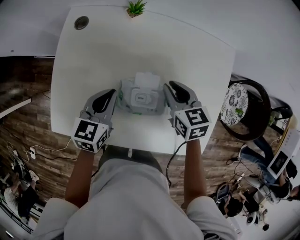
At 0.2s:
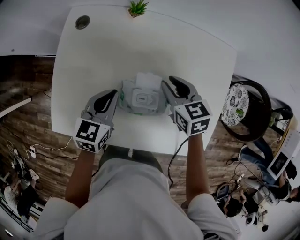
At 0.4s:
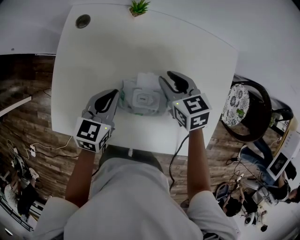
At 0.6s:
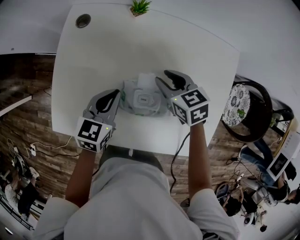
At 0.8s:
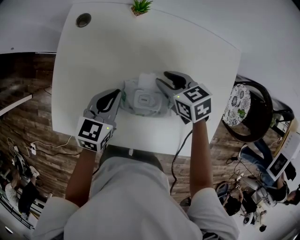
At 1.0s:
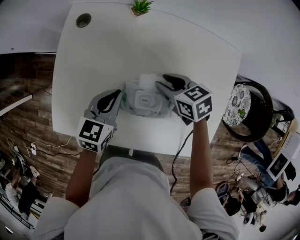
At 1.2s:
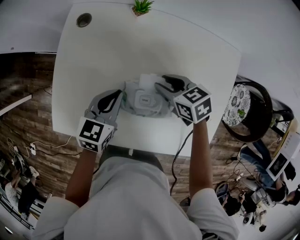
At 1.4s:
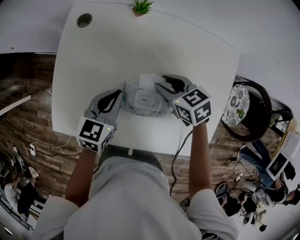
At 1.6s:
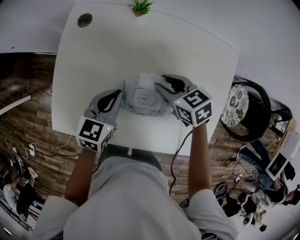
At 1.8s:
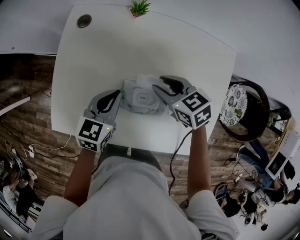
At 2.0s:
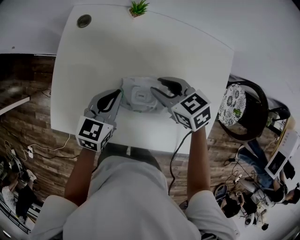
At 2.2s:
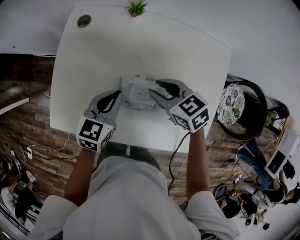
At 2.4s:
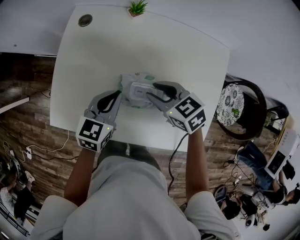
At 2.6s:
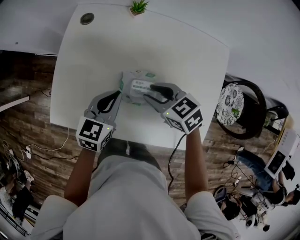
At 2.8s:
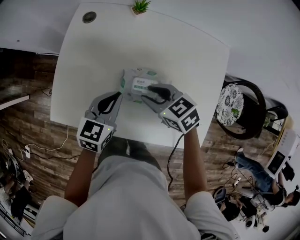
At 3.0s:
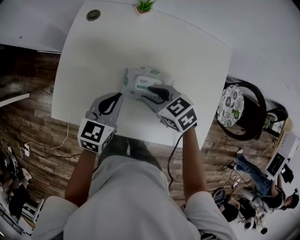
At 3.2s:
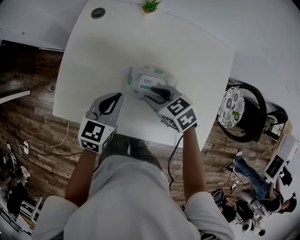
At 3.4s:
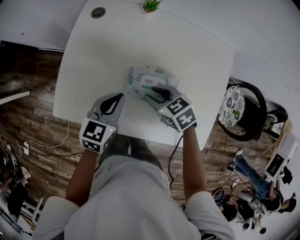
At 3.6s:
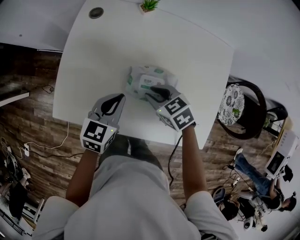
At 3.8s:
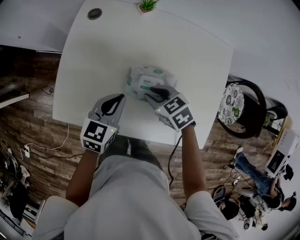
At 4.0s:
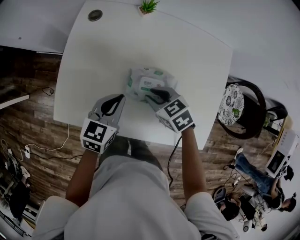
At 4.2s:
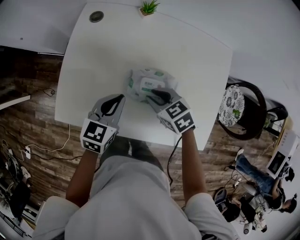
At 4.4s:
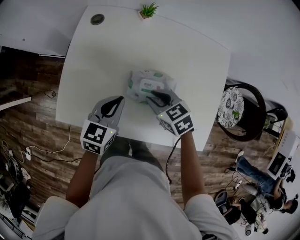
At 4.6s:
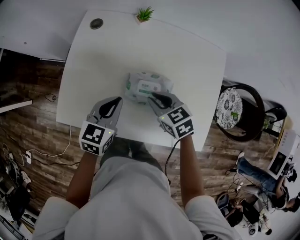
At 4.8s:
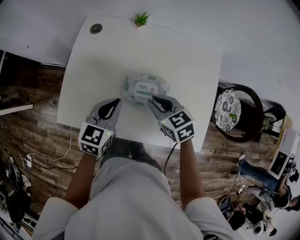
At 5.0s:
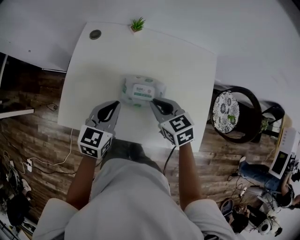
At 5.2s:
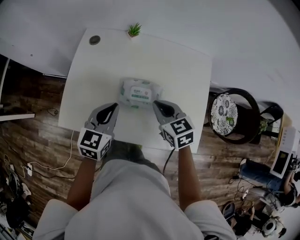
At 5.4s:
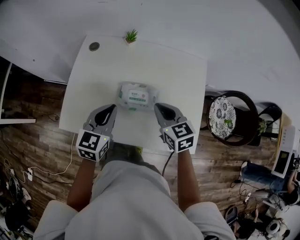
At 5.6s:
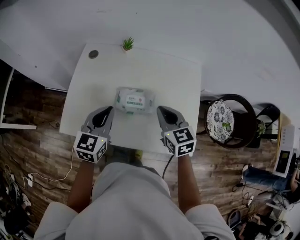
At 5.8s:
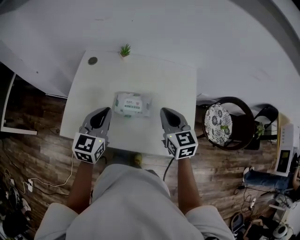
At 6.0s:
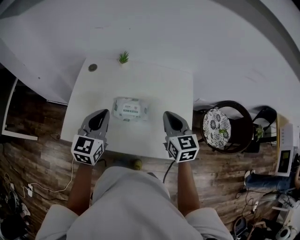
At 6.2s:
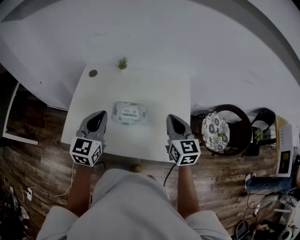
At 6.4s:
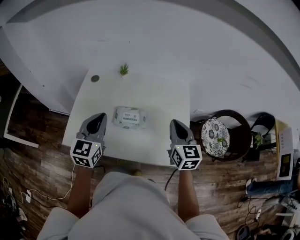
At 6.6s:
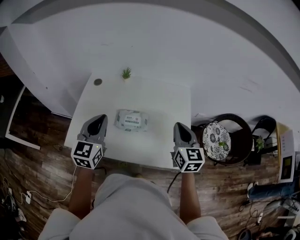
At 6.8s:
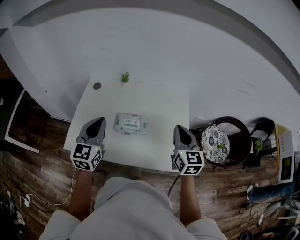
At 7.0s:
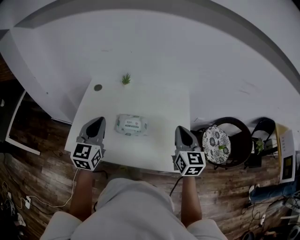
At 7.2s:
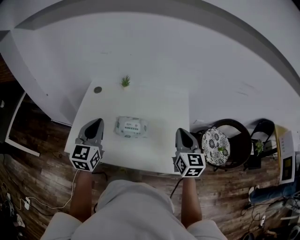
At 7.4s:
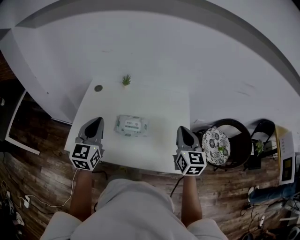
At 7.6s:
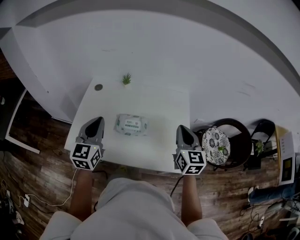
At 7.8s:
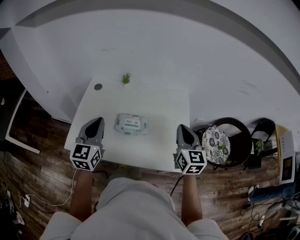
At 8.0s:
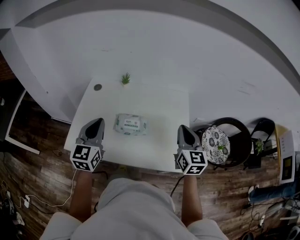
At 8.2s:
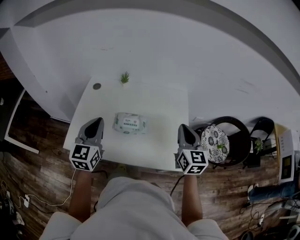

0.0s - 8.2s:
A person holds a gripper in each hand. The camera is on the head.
0.0s - 1.6s: The right gripper ends up approximately 5 cm from where it was, and turns by roughly 20 degrees.
1.6s - 3.2s: The left gripper heads backward, covering about 5 cm. The right gripper goes about 10 cm backward and to the left.
3.2s - 5.0s: The two grippers go roughly 5 cm upward. The right gripper swivels roughly 20 degrees, and closes its fingers.
5.0s - 6.6s: The left gripper moves upward, about 15 cm, and turns by about 20 degrees. The right gripper heads to the right, upward and backward, covering roughly 25 cm, and turns by some 40 degrees.
6.6s - 8.2s: The grippers make only small movements.

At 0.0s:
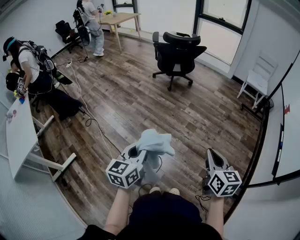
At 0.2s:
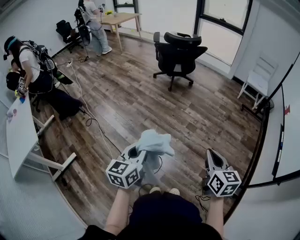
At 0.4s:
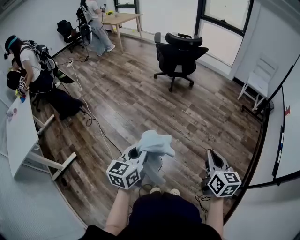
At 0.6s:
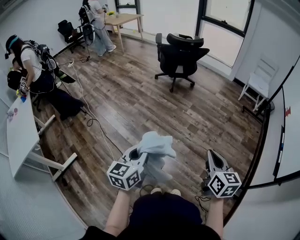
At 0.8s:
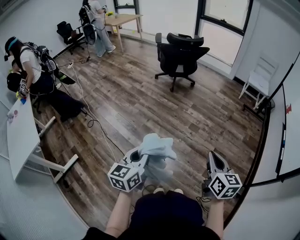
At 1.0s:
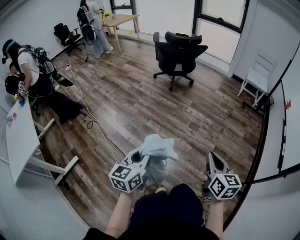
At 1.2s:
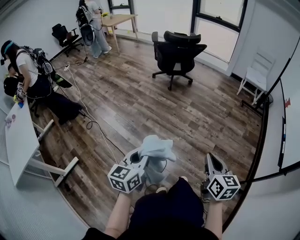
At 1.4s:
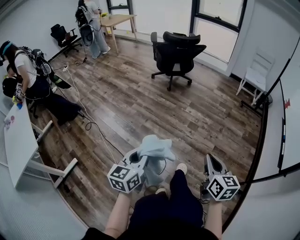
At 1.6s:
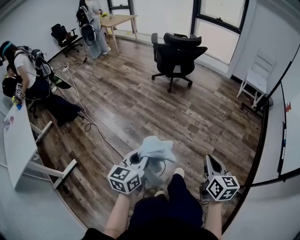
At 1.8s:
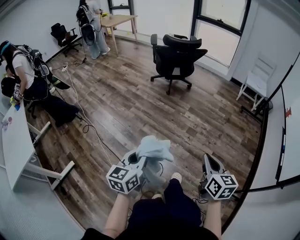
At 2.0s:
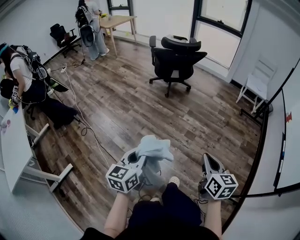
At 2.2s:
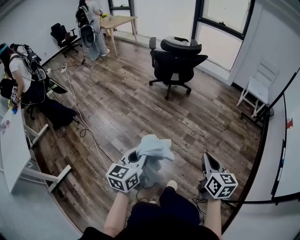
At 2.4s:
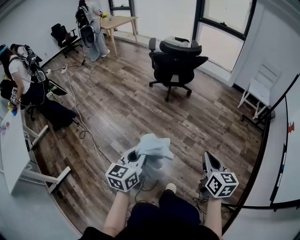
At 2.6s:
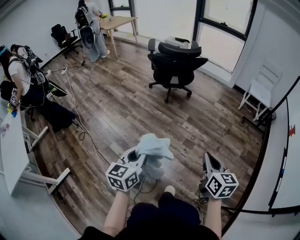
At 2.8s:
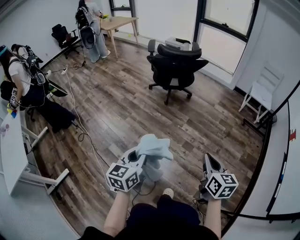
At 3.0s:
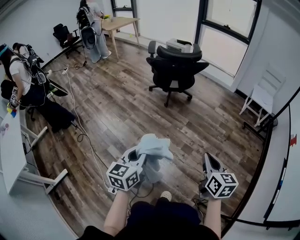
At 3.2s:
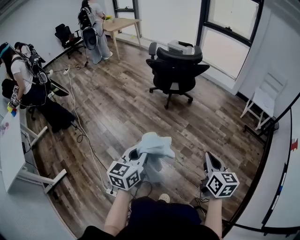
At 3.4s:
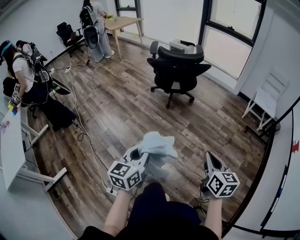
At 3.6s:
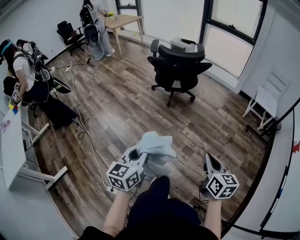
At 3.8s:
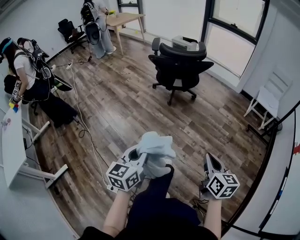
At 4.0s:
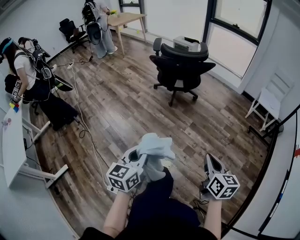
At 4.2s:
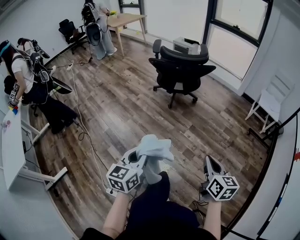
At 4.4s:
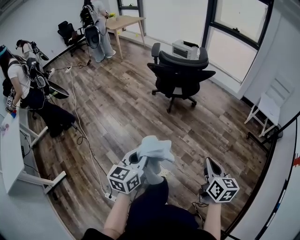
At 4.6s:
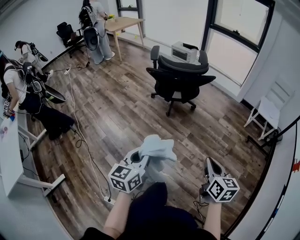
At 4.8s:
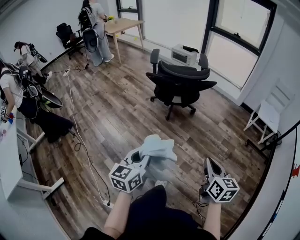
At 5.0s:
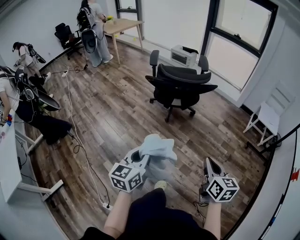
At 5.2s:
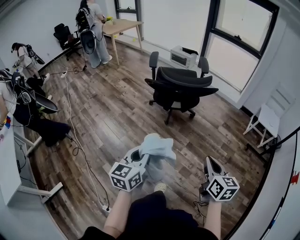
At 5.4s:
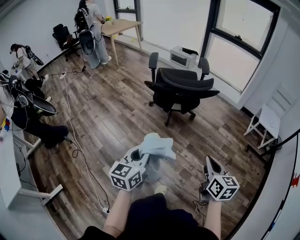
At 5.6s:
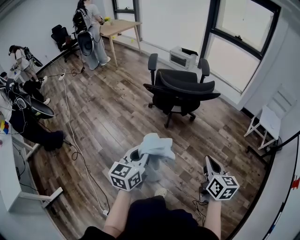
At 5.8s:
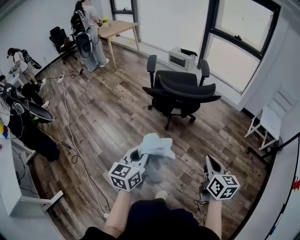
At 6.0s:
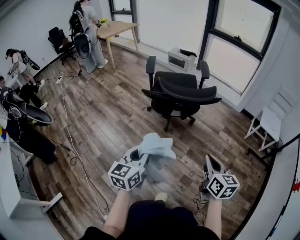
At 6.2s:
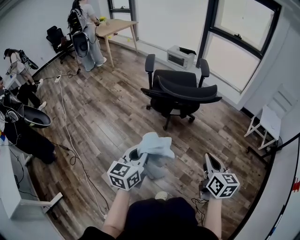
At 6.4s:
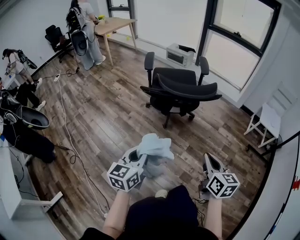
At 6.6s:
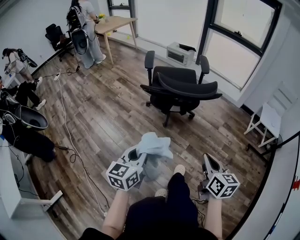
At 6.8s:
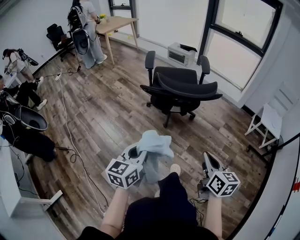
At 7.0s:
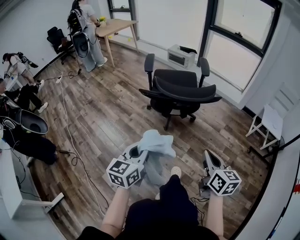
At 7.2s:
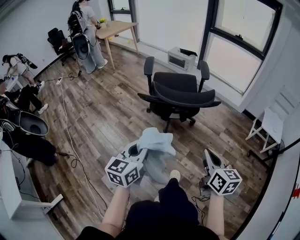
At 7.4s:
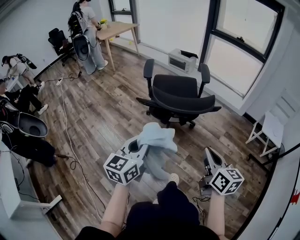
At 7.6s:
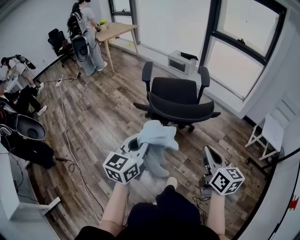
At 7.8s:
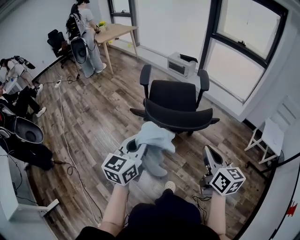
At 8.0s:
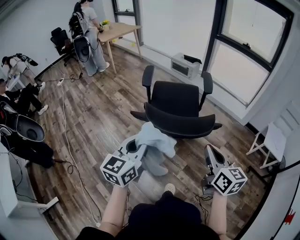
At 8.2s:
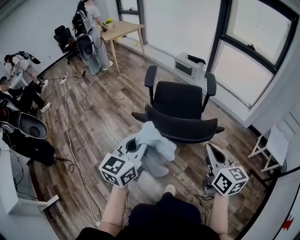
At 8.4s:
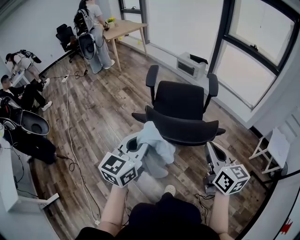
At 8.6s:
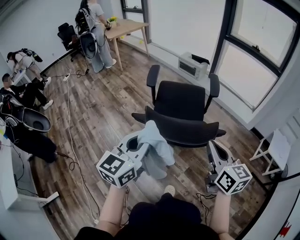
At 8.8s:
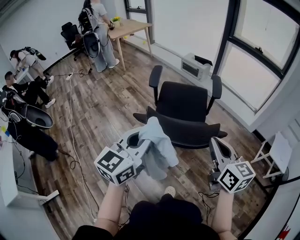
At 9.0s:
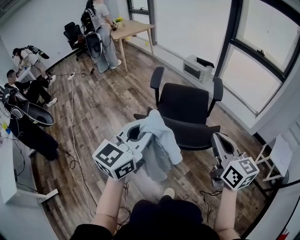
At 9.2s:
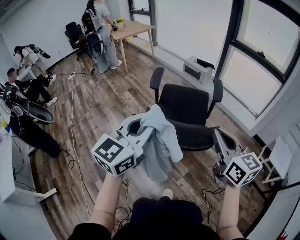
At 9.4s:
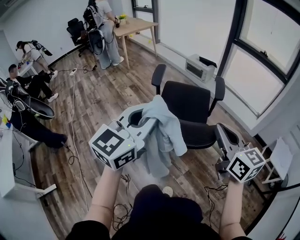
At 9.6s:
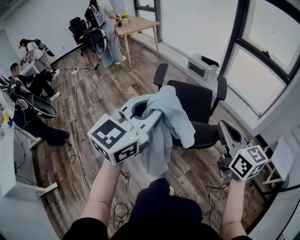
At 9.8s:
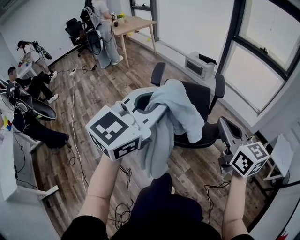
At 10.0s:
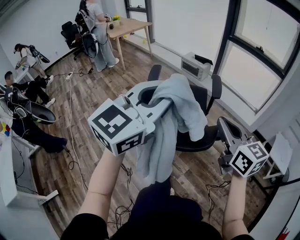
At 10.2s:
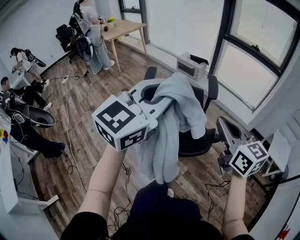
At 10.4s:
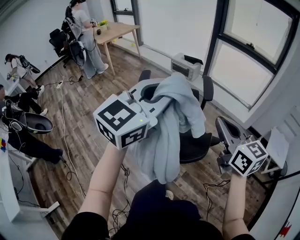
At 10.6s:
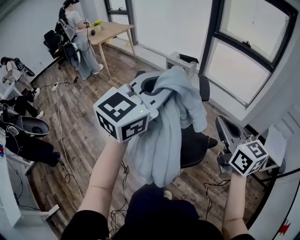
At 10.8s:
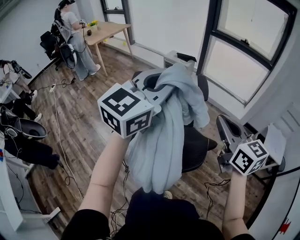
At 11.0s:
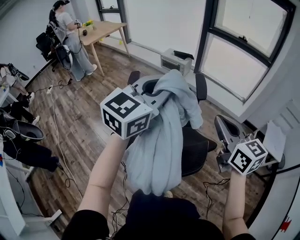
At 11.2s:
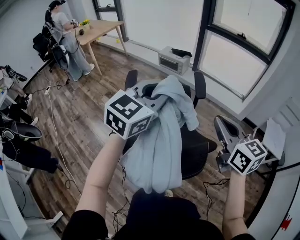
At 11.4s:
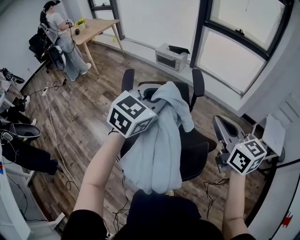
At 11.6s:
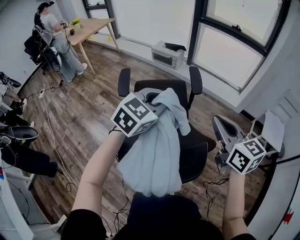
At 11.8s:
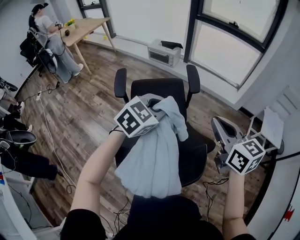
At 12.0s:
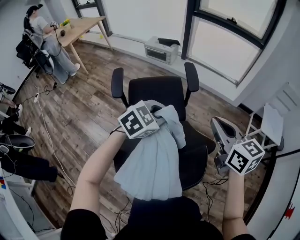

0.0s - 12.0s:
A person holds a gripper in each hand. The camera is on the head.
0.0s - 1.6s: The right gripper ends up roughly 5 cm from where it was.
1.6s - 3.0s: Both grippers travel together forward, about 25 cm.
3.0s - 4.4s: Both grippers move forward, some 10 cm.
4.4s - 6.0s: The grippers both shift forward by about 25 cm.
6.0s - 7.6s: The left gripper travels forward and upward by roughly 15 cm. The right gripper is displaced forward by some 15 cm.
7.6s - 9.0s: The two grippers go approximately 15 cm forward and upward.
9.0s - 10.4s: The right gripper goes roughly 10 cm forward and upward; the left gripper heads forward, upward and to the right, covering about 20 cm, and turns by approximately 20 degrees.
10.4s - 12.0s: The left gripper goes roughly 30 cm downward and forward, and tilts its fingers roughly 40 degrees downward. The right gripper travels forward and downward by some 15 cm.

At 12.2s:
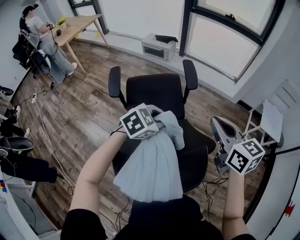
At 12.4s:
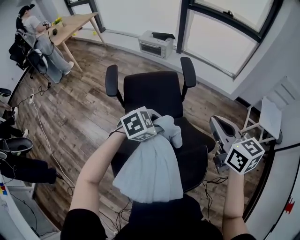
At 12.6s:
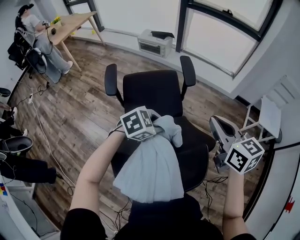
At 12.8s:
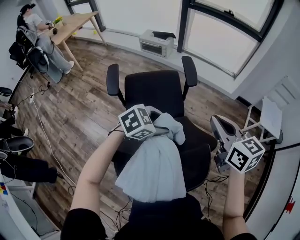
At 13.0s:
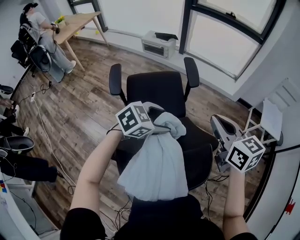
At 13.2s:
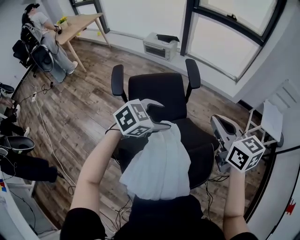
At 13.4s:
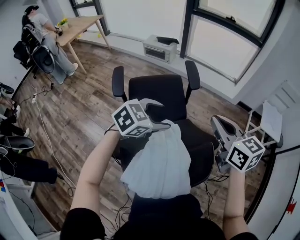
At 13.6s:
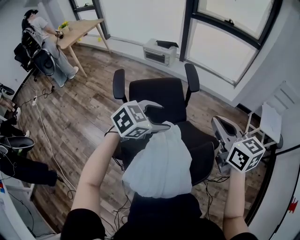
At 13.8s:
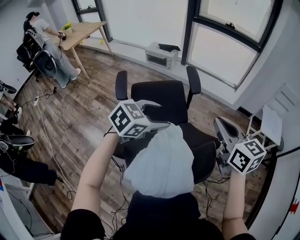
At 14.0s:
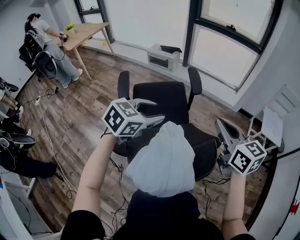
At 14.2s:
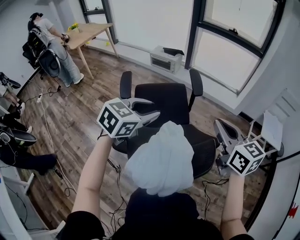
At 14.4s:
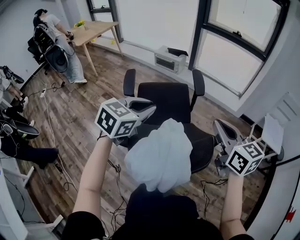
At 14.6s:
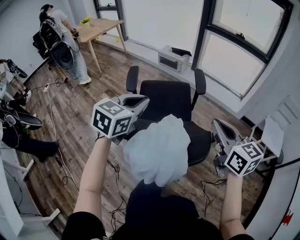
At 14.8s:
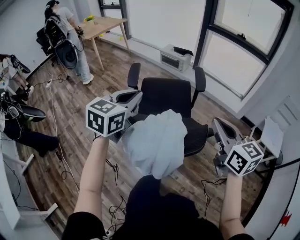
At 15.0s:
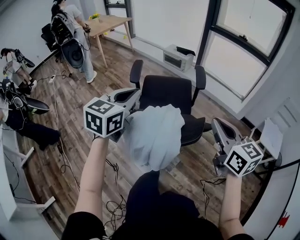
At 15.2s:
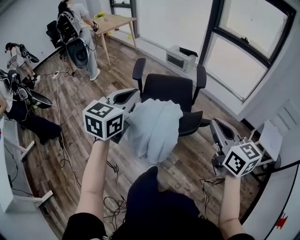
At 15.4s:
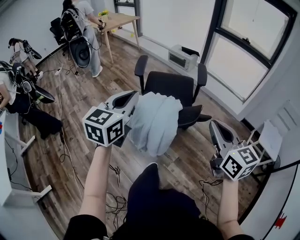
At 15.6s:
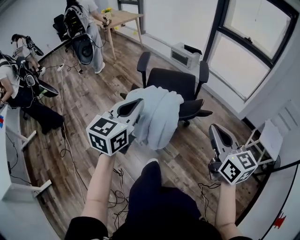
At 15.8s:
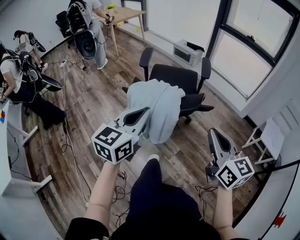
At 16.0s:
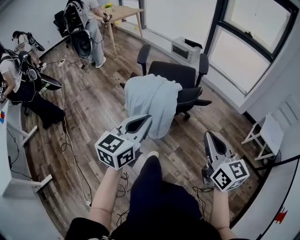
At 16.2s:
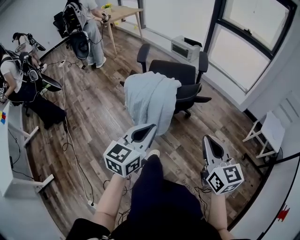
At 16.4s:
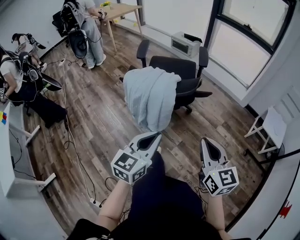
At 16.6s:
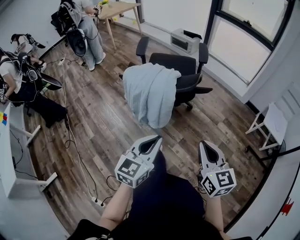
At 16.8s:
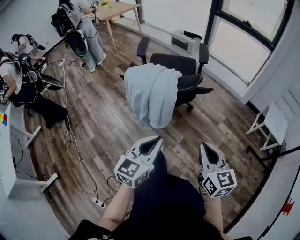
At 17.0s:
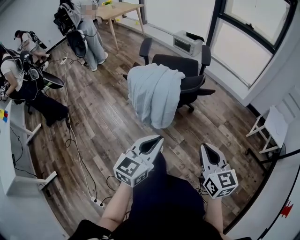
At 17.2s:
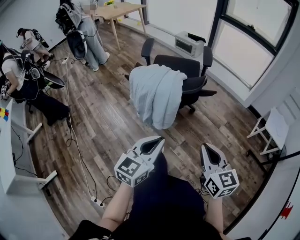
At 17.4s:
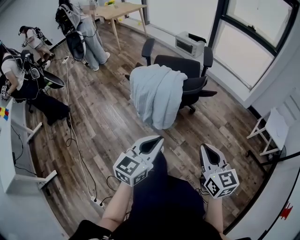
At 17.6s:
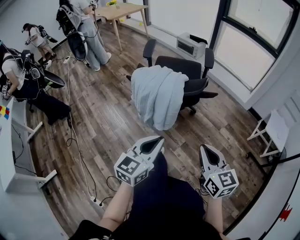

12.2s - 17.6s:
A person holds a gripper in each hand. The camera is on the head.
12.2s - 13.6s: The left gripper changes place by approximately 5 cm, and opens.
13.6s - 15.0s: The left gripper ends up about 20 cm from where it was, changes its angle by approximately 50 degrees, and closes. The right gripper moves some 15 cm.
15.0s - 16.2s: Both grippers move backward, approximately 25 cm.
16.2s - 17.6s: The left gripper shifts roughly 5 cm backward; the right gripper heads downward, covering roughly 5 cm.
